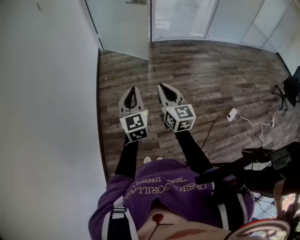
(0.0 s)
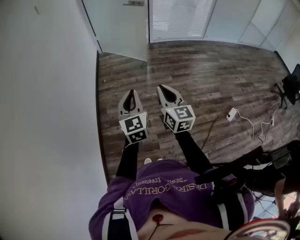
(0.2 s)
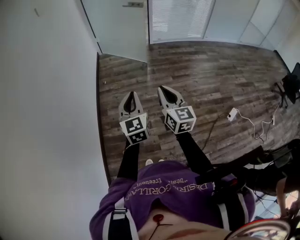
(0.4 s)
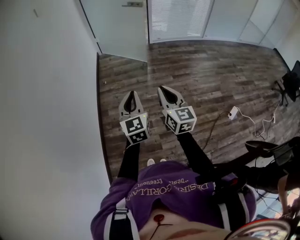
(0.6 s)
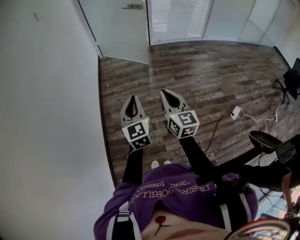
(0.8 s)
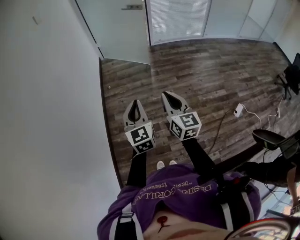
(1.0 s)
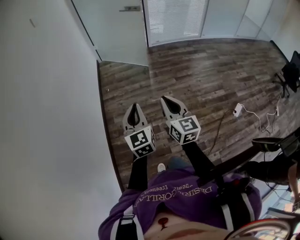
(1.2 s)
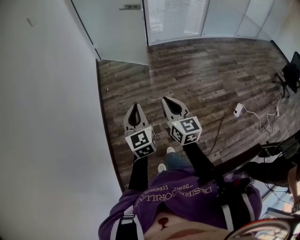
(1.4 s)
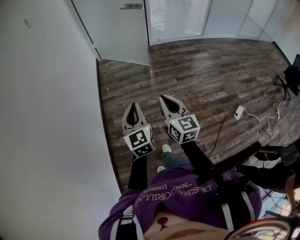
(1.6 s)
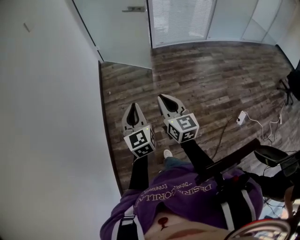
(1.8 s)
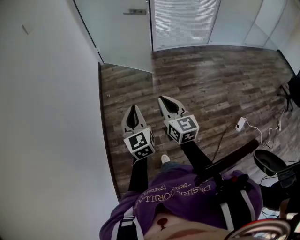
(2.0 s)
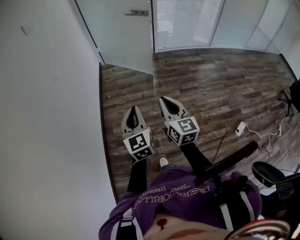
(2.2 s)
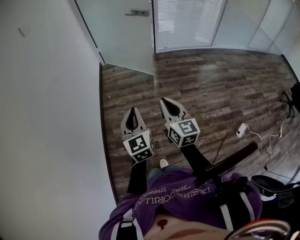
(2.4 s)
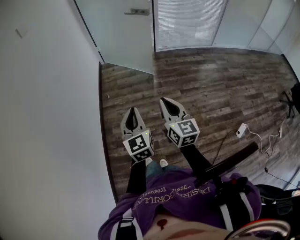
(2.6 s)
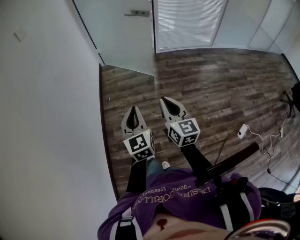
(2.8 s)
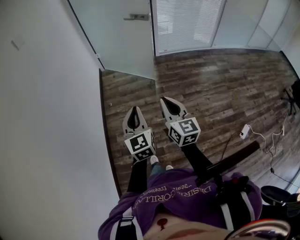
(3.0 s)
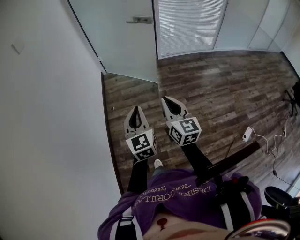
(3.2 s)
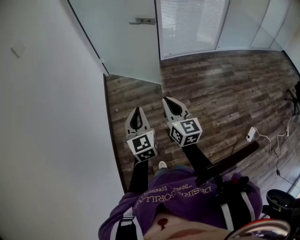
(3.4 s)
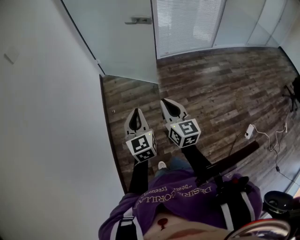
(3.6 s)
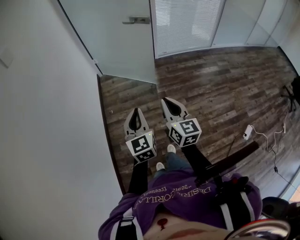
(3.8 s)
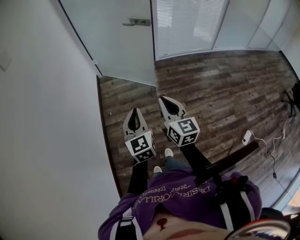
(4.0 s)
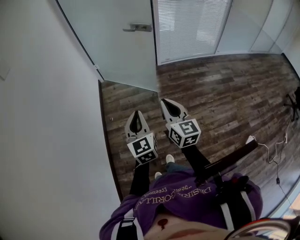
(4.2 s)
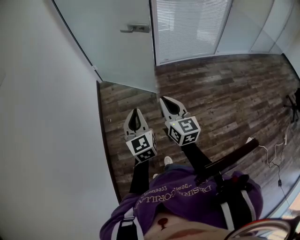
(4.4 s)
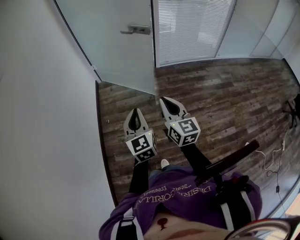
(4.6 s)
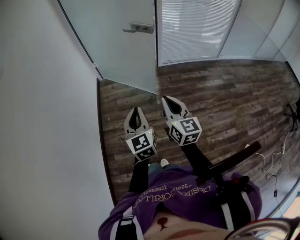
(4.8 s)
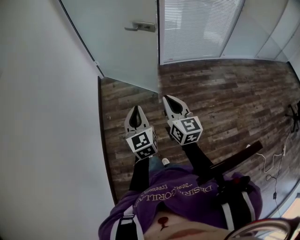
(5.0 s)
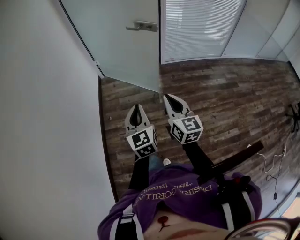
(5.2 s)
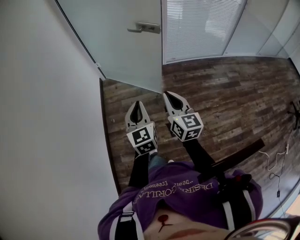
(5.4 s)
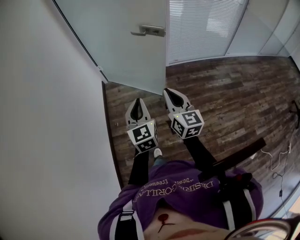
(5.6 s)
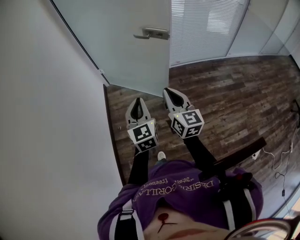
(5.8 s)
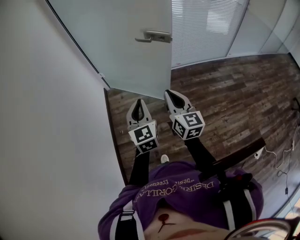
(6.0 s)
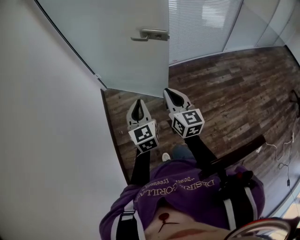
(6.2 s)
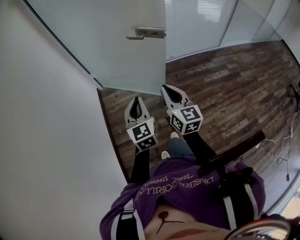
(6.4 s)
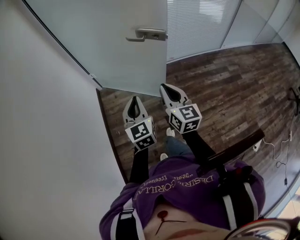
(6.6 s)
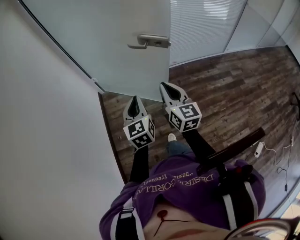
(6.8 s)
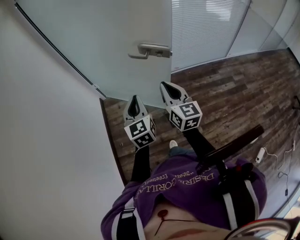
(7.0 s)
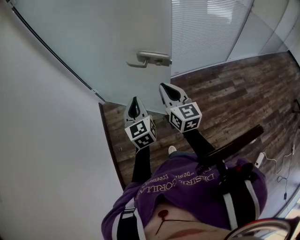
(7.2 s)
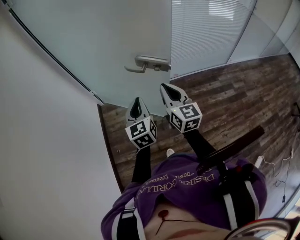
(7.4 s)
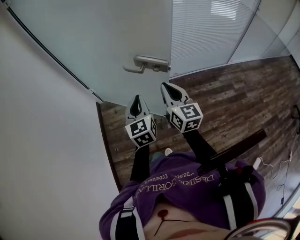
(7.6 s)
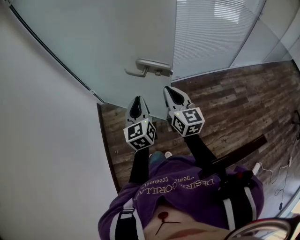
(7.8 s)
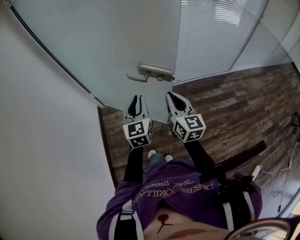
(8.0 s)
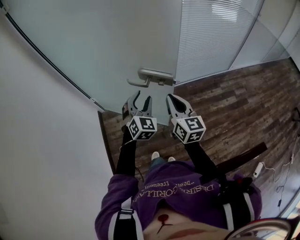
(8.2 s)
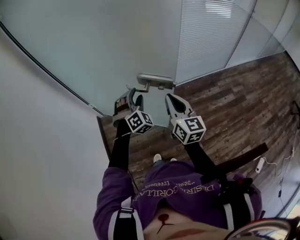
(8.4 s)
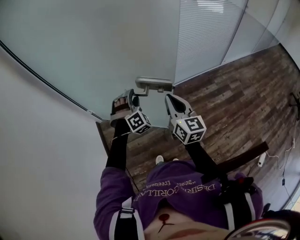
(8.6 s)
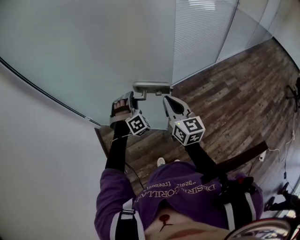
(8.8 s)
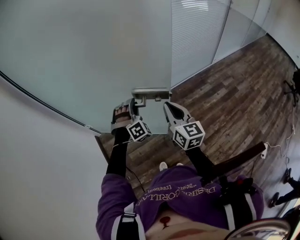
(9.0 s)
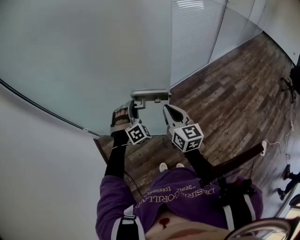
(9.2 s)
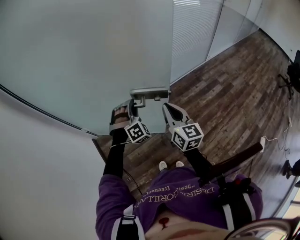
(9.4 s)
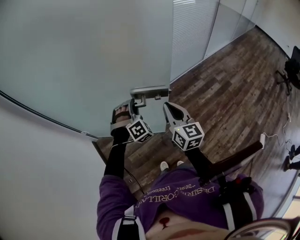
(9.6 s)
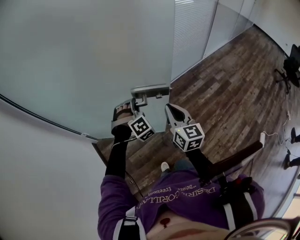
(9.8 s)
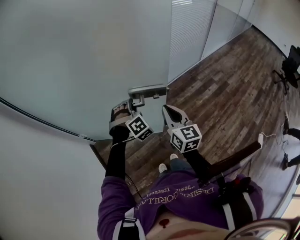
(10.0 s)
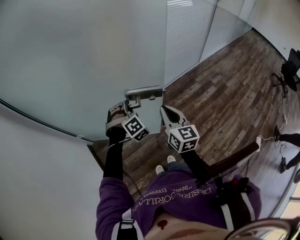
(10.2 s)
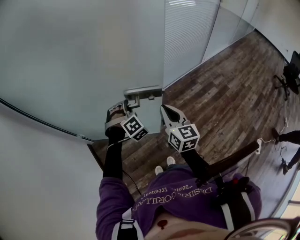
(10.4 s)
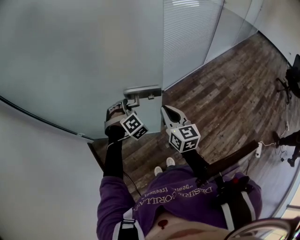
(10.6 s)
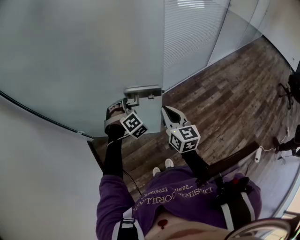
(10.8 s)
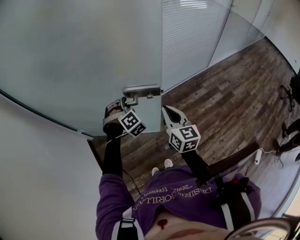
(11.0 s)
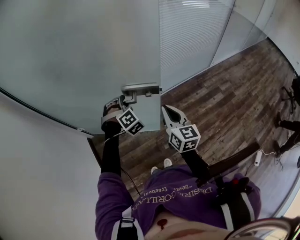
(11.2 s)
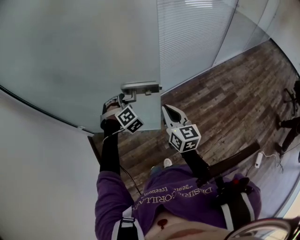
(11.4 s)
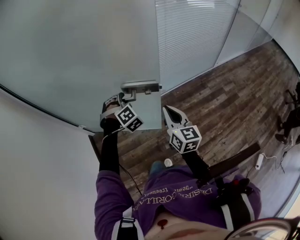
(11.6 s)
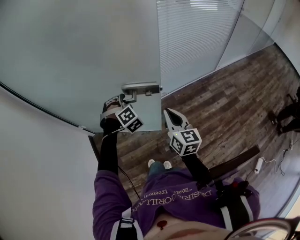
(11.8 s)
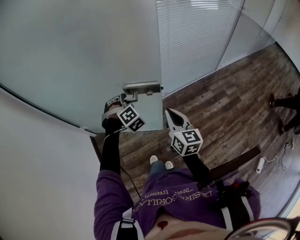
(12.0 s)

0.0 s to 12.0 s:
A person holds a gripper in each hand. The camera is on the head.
0.0 to 1.6 s: The left gripper goes some 10 cm forward and to the left. Meanwhile the right gripper moves forward, about 5 cm.
1.6 to 3.0 s: The two grippers go some 20 cm forward.
3.0 to 4.4 s: Both grippers move forward, roughly 20 cm.
4.4 to 6.0 s: The two grippers go about 25 cm forward.
6.0 to 7.6 s: The two grippers go approximately 30 cm forward.
7.6 to 9.0 s: The left gripper goes about 20 cm forward, twists roughly 90 degrees clockwise, seen from behind, and opens up. Meanwhile the right gripper shifts some 5 cm forward.
9.0 to 10.4 s: The grippers move only a little.
10.4 to 12.0 s: The left gripper travels forward by about 10 cm. The right gripper heads to the right and forward, covering about 10 cm.

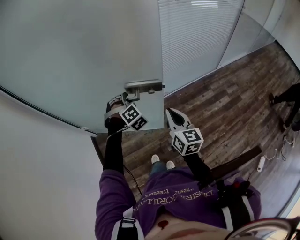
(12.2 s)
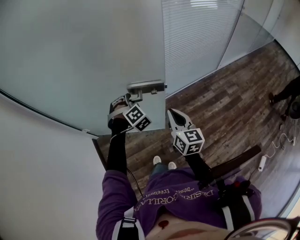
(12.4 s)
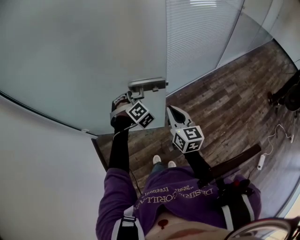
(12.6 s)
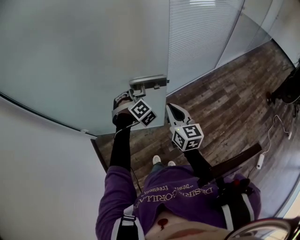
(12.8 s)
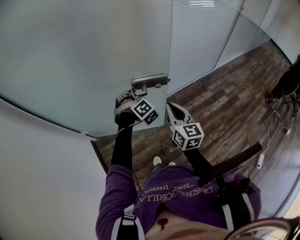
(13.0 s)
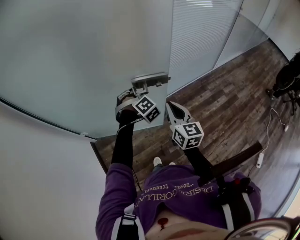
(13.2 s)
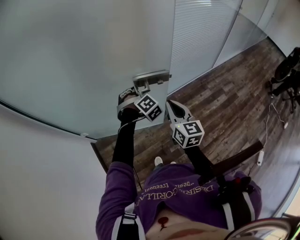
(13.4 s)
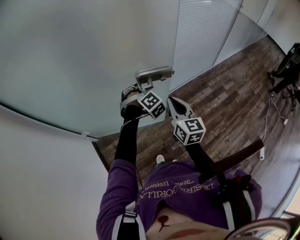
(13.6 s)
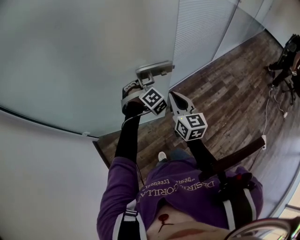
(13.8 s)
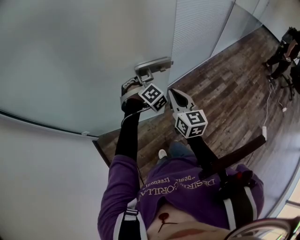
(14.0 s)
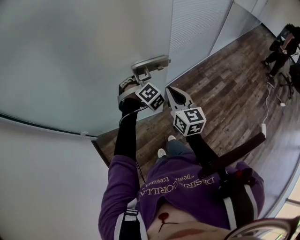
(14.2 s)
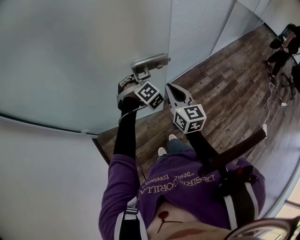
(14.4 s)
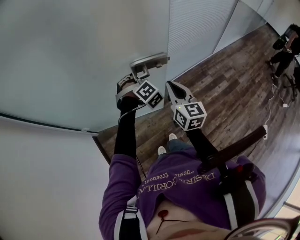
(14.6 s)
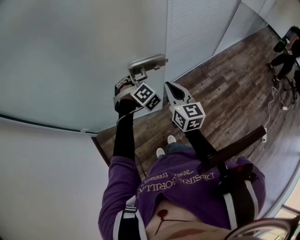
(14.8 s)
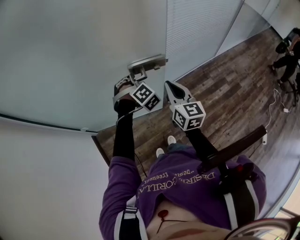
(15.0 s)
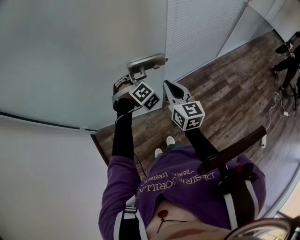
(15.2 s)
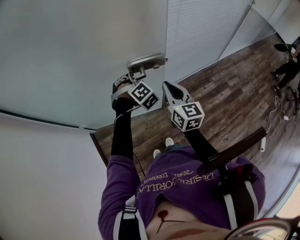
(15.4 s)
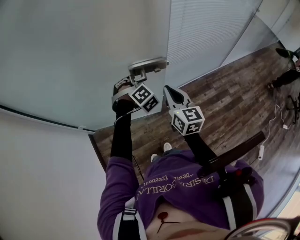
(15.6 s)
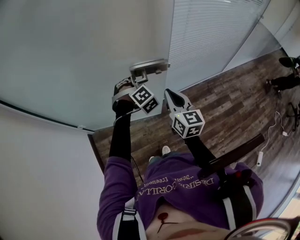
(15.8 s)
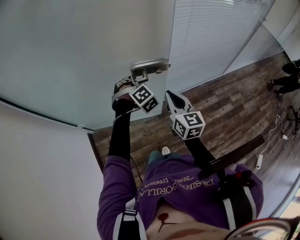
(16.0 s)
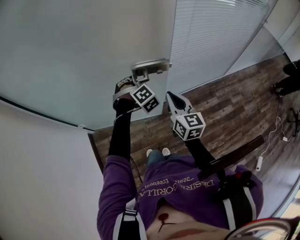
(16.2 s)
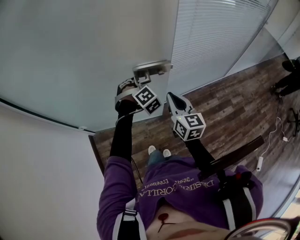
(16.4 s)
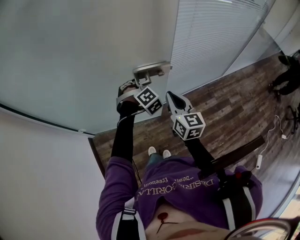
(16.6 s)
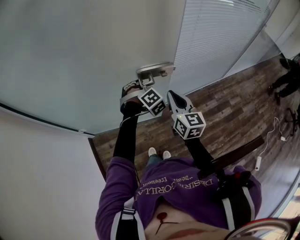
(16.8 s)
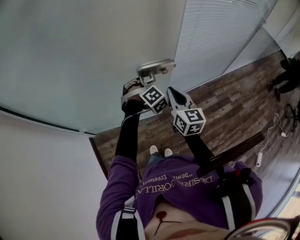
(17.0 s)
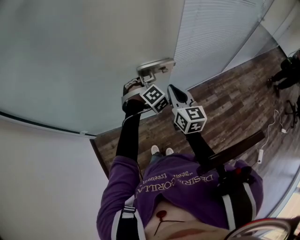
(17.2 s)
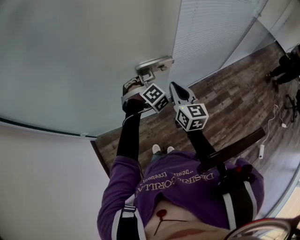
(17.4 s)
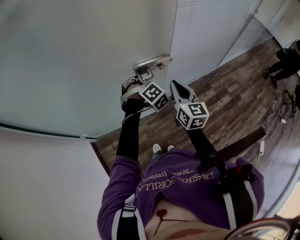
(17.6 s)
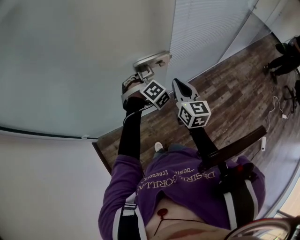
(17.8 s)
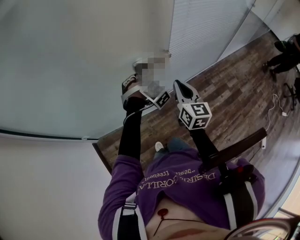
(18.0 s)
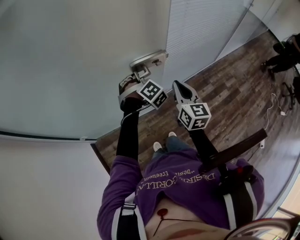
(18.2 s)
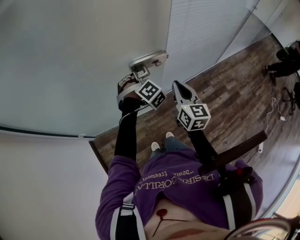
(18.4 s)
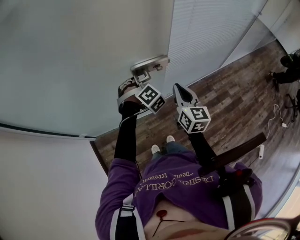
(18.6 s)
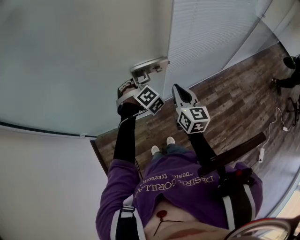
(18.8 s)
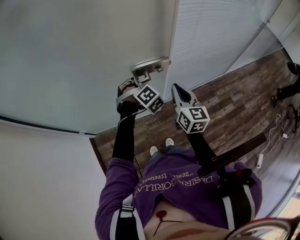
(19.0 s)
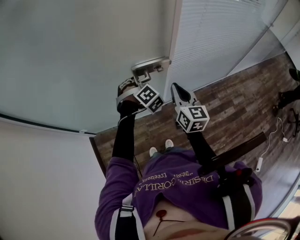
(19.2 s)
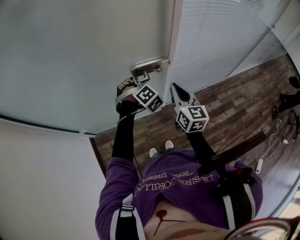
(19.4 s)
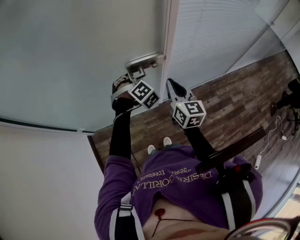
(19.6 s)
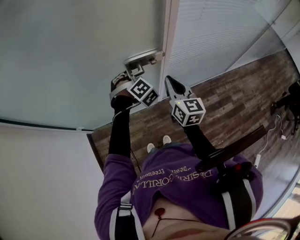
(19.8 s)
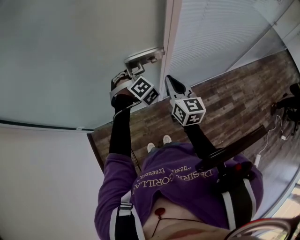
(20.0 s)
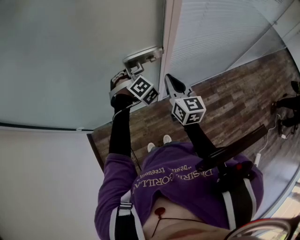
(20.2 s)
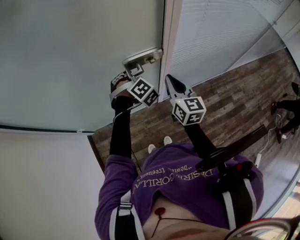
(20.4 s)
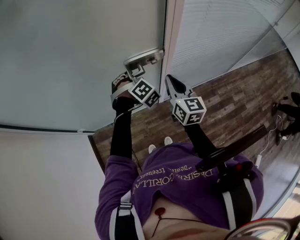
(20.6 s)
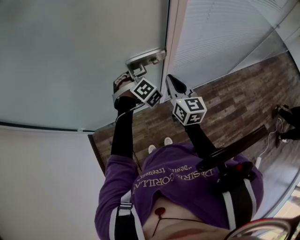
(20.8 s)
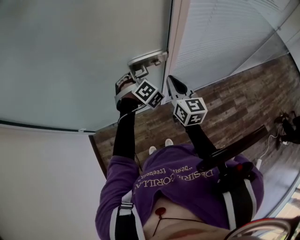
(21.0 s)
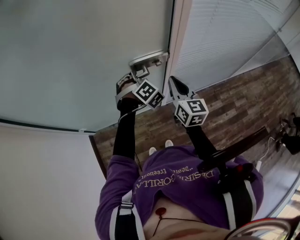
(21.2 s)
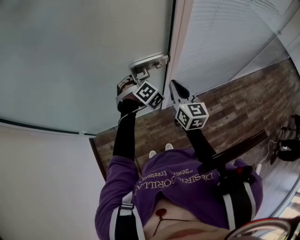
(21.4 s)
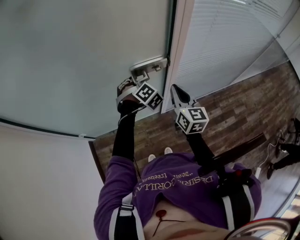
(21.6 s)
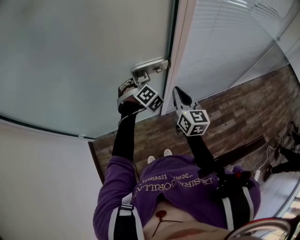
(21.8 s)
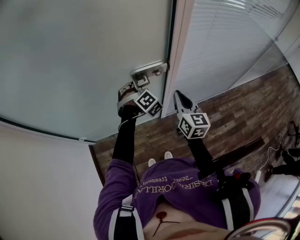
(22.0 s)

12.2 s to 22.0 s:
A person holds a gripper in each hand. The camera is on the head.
12.2 to 13.6 s: The two grippers go approximately 10 cm forward.
13.6 to 15.0 s: Both grippers travel together forward, about 5 cm.
15.0 to 16.4 s: The left gripper goes some 5 cm forward.
16.4 to 17.8 s: The right gripper travels forward by roughly 5 cm.
17.8 to 19.2 s: The grippers move only a little.
19.2 to 20.6 s: The grippers both shift forward by about 5 cm.
20.6 to 22.0 s: The grippers move only a little.

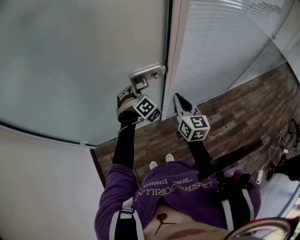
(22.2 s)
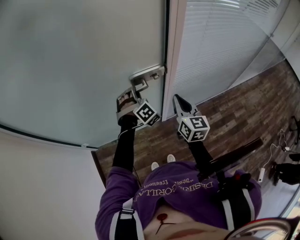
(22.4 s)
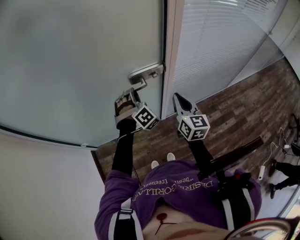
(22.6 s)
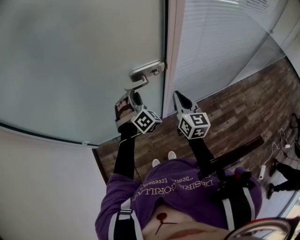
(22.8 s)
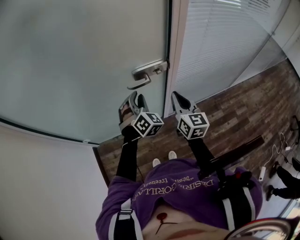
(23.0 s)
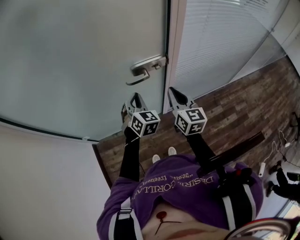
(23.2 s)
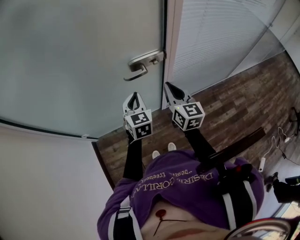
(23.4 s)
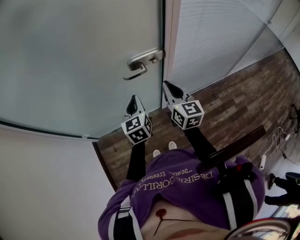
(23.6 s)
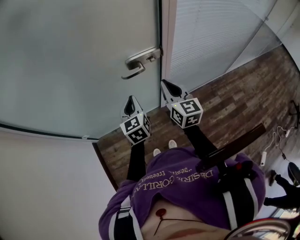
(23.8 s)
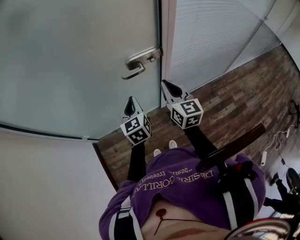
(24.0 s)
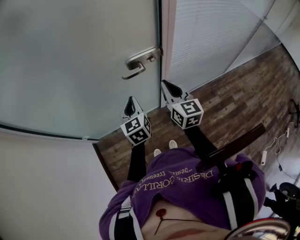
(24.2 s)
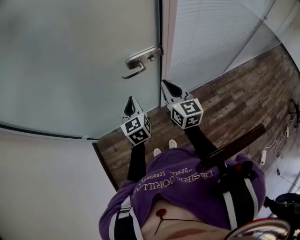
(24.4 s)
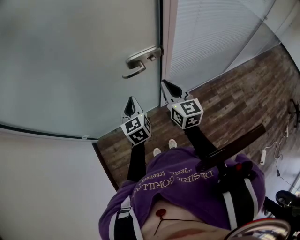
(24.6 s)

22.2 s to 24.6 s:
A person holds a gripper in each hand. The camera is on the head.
22.2 to 23.4 s: The right gripper shifts approximately 5 cm to the left. Meanwhile the left gripper shifts approximately 10 cm backward, twists approximately 60 degrees counterclockwise, seen from behind, and closes its fingers.
23.4 to 24.6 s: There are only small adjustments of the grippers.
